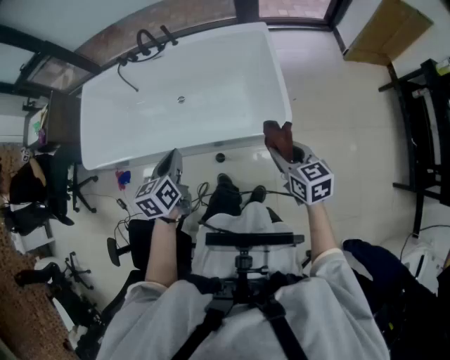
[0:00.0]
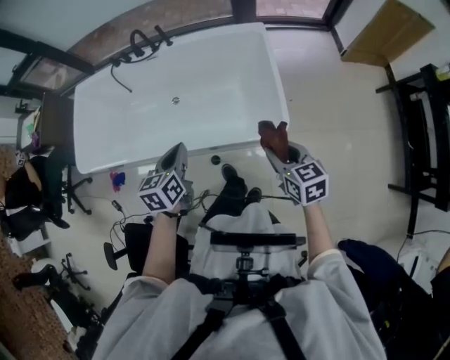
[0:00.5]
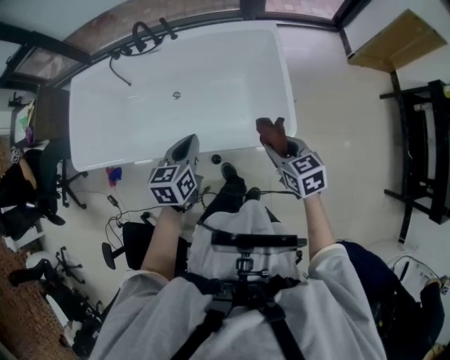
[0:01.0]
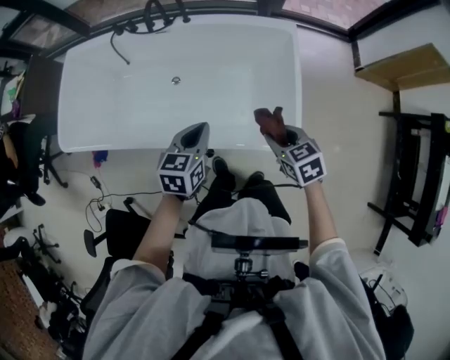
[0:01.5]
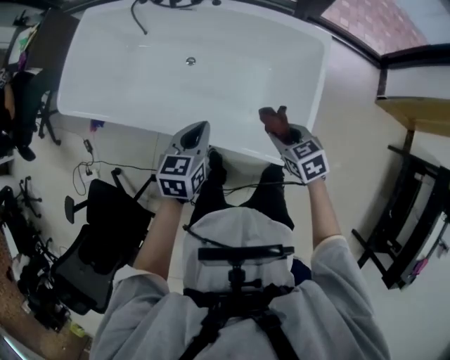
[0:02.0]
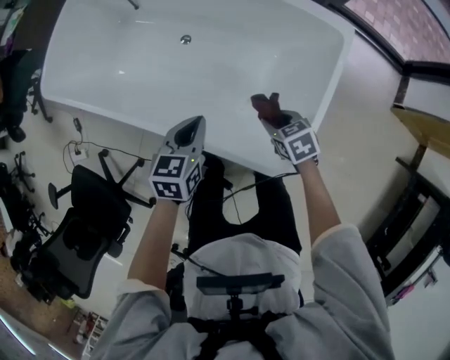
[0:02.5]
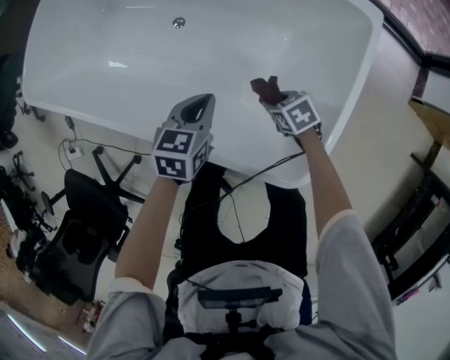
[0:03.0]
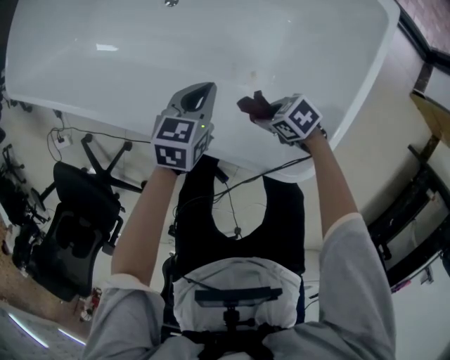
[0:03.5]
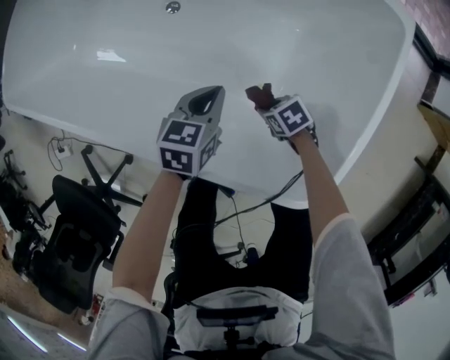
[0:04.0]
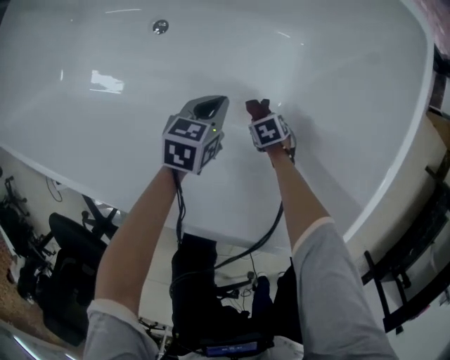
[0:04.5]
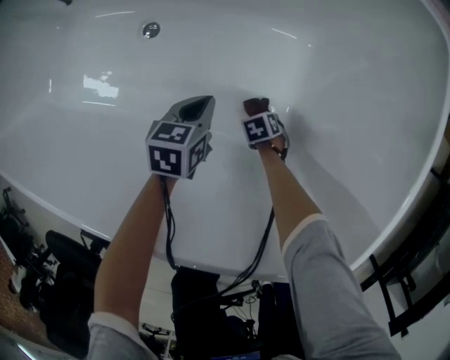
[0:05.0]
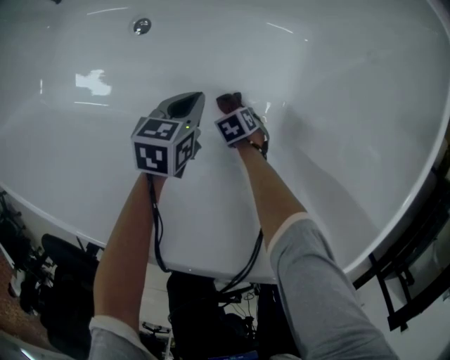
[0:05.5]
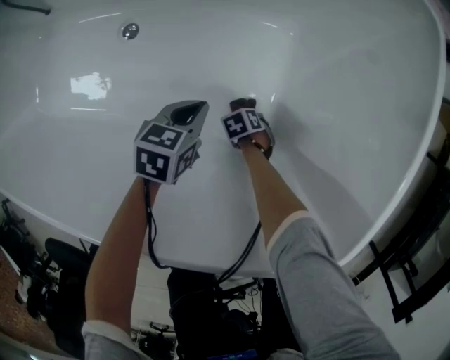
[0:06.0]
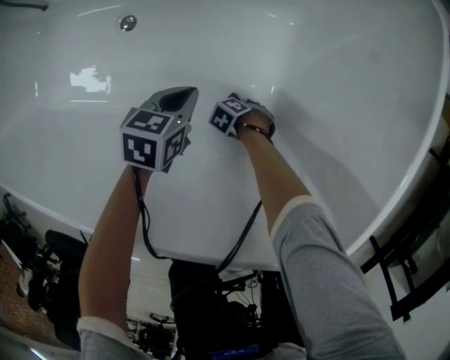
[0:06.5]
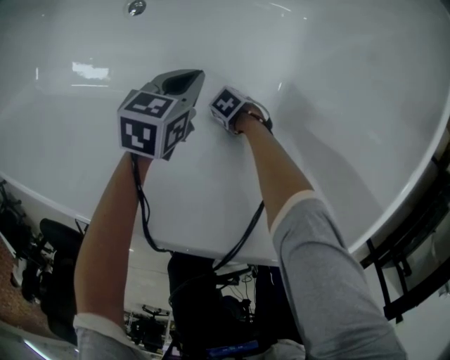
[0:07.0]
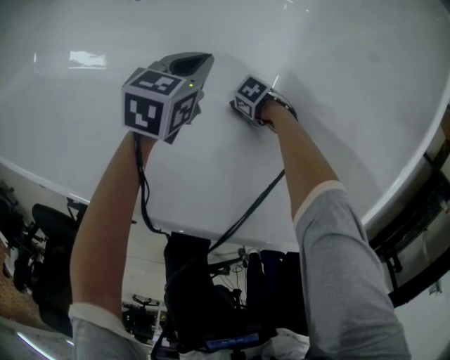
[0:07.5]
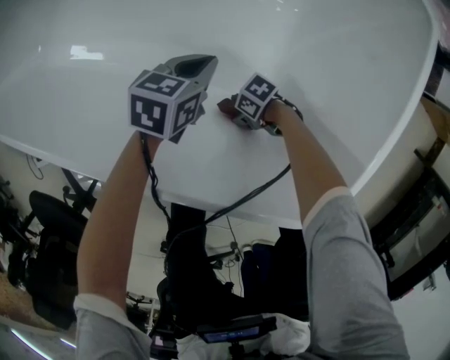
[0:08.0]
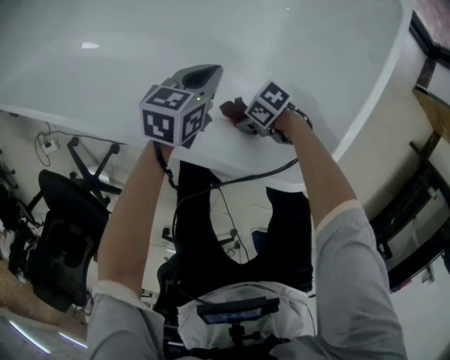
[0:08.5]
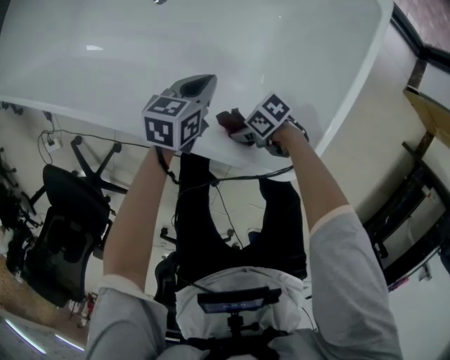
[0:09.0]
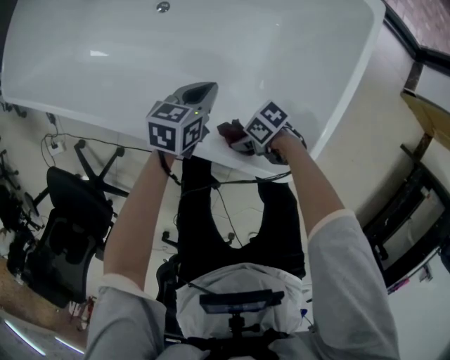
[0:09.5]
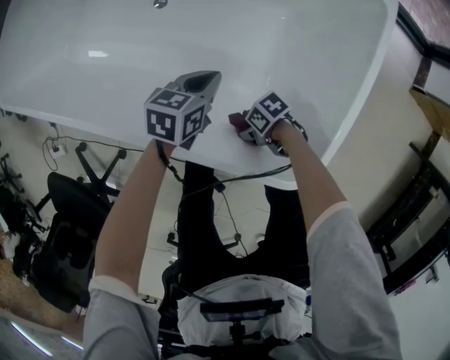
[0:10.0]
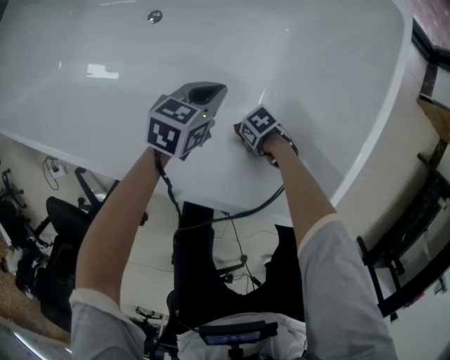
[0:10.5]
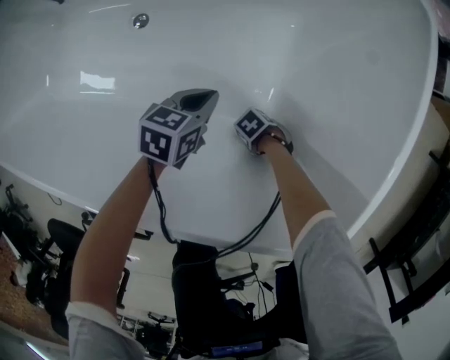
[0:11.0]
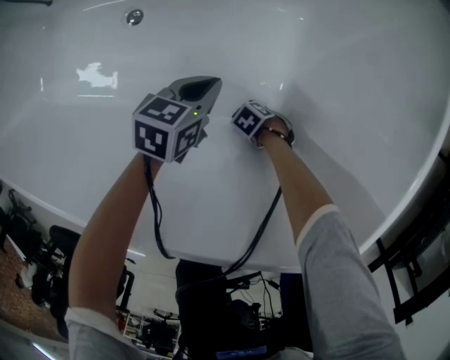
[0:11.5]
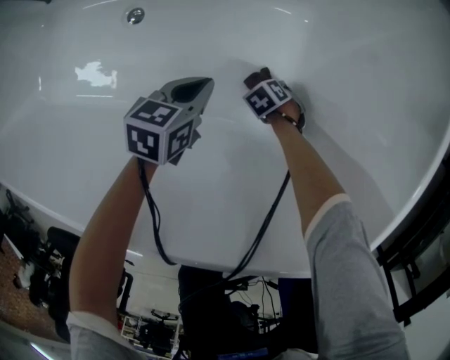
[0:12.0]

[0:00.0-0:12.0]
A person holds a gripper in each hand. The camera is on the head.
0:00.0 to 0:02.0: The left gripper shifts by roughly 20 cm.
0:02.0 to 0:04.0: The left gripper moves downward, roughly 35 cm.
0:04.0 to 0:06.0: The left gripper is displaced downward by roughly 20 cm.
0:06.0 to 0:08.0: The left gripper shifts about 5 cm upward.
0:08.0 to 0:10.0: The left gripper moves upward, about 10 cm.
0:10.0 to 0:12.0: The left gripper heads downward, covering roughly 20 cm.

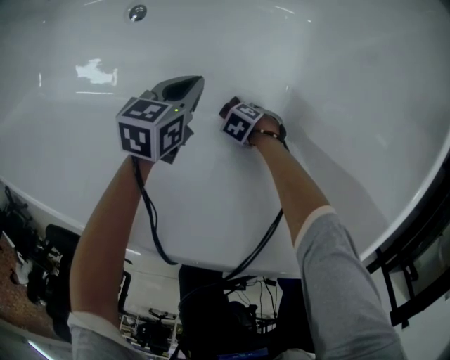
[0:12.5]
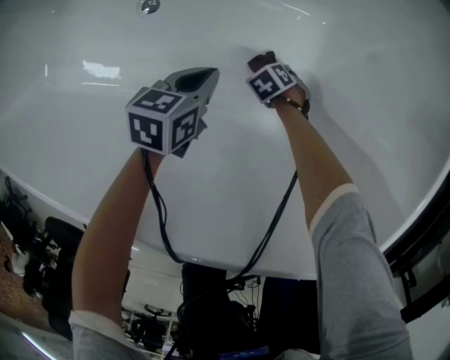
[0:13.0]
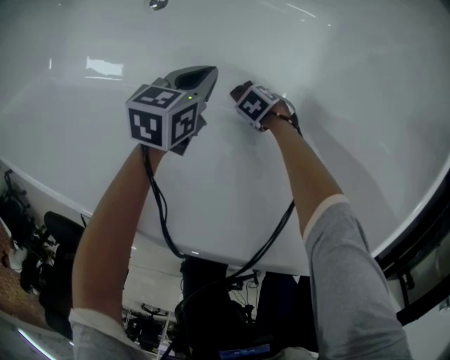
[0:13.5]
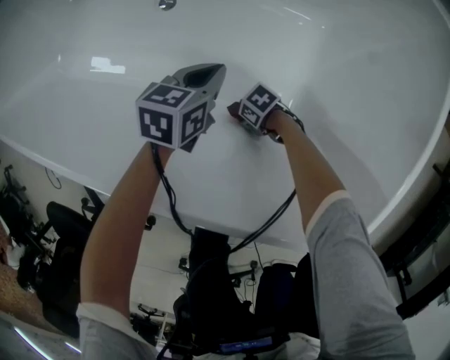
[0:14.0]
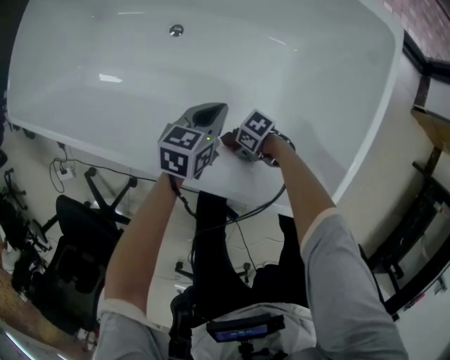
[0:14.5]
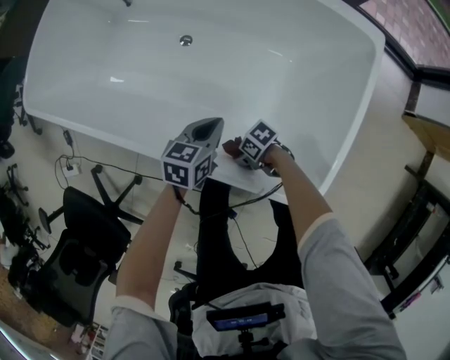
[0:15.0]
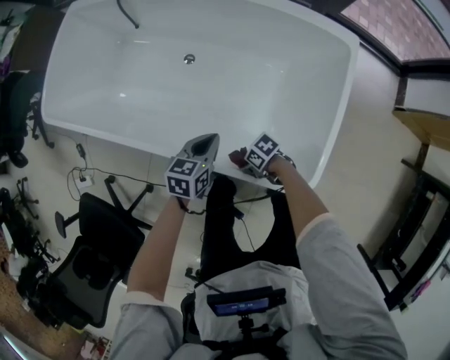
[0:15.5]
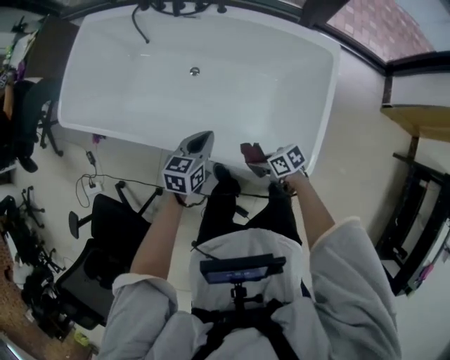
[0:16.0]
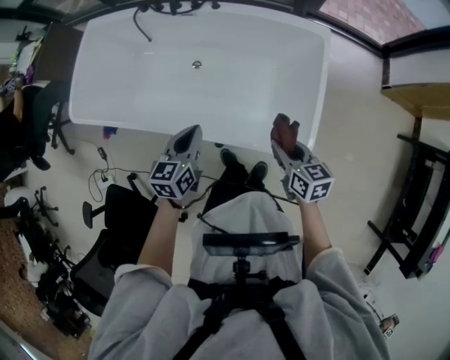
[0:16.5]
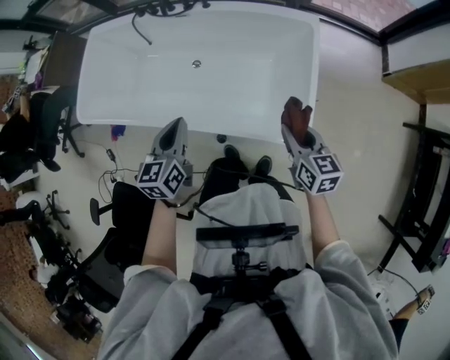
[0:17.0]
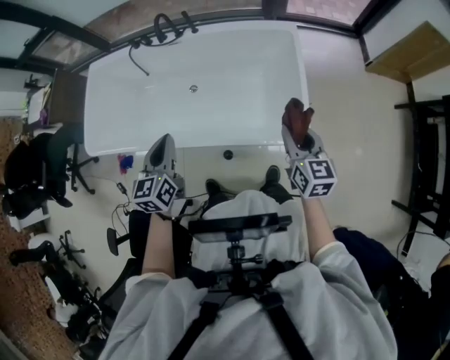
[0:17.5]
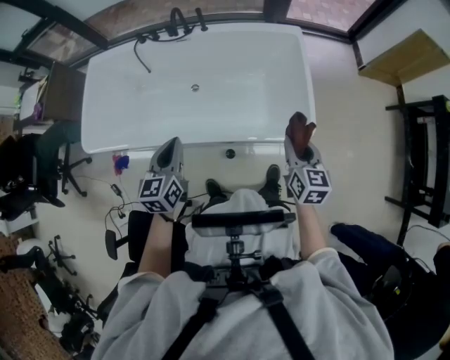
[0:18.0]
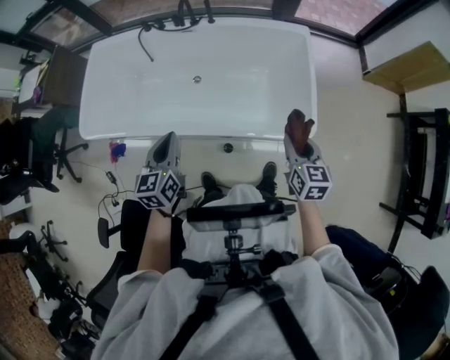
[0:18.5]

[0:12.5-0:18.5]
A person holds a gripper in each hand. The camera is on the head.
0:12.5 to 0:14.5: The left gripper heads upward, covering some 20 cm.
0:14.5 to 0:16.5: The left gripper shifts about 35 cm upward.
0:16.5 to 0:18.5: The left gripper ends up about 20 cm from where it was.

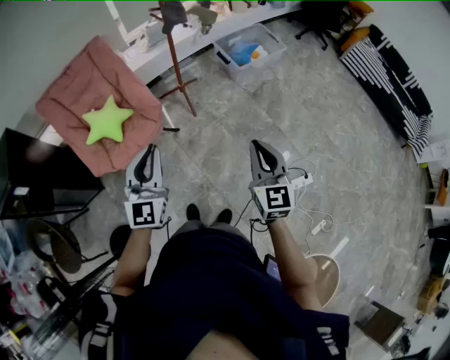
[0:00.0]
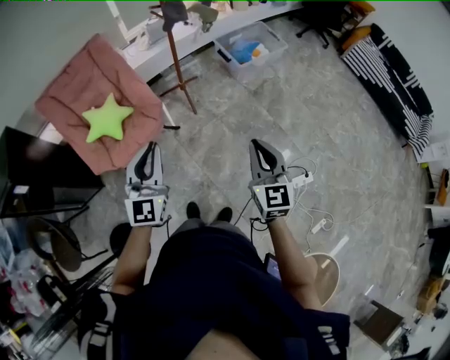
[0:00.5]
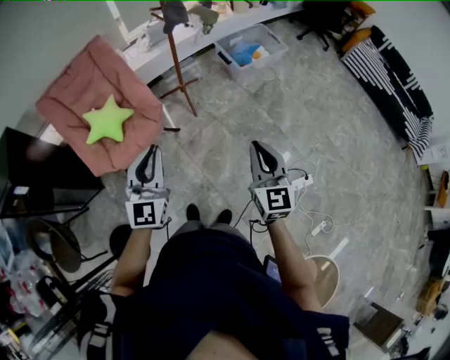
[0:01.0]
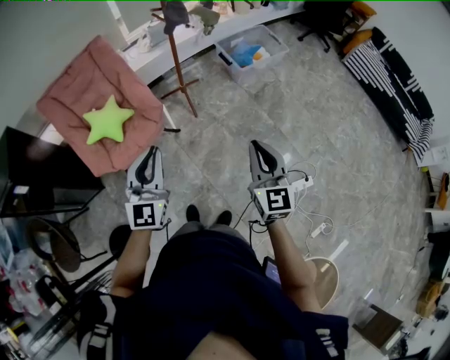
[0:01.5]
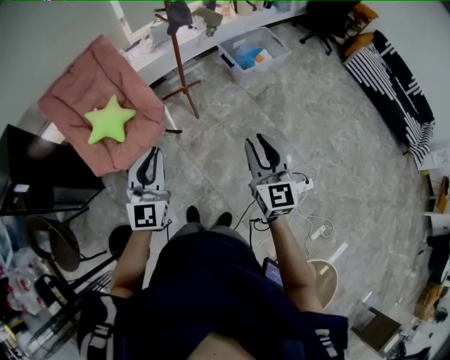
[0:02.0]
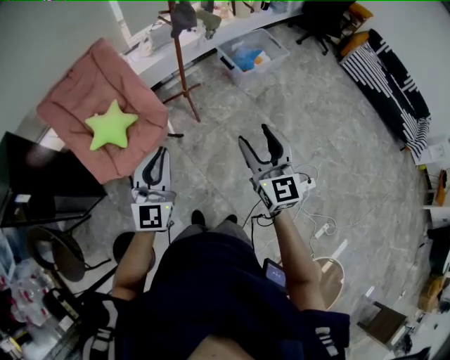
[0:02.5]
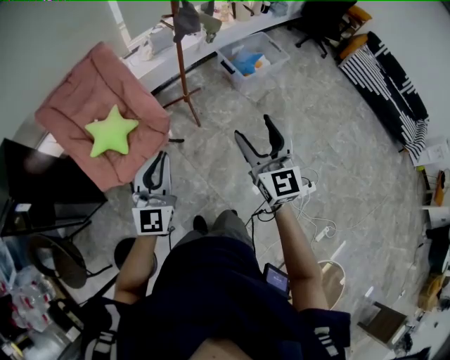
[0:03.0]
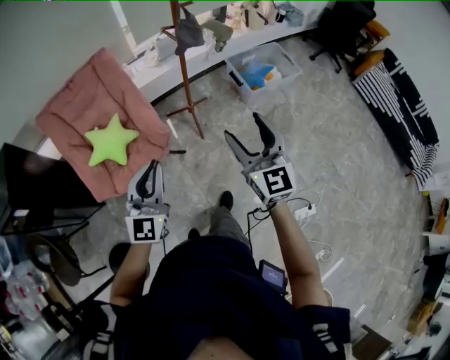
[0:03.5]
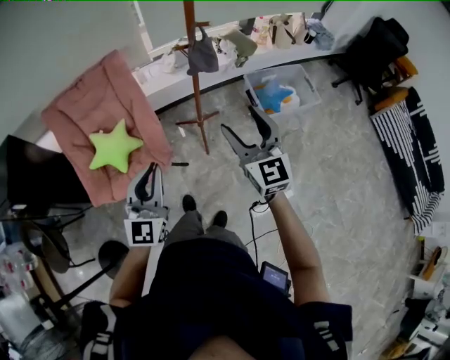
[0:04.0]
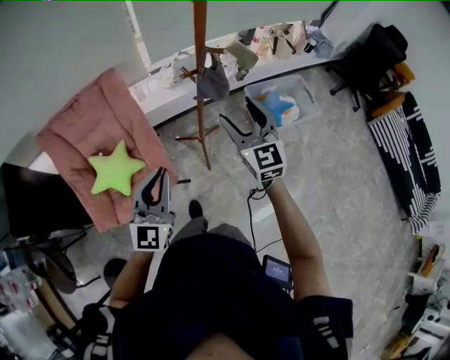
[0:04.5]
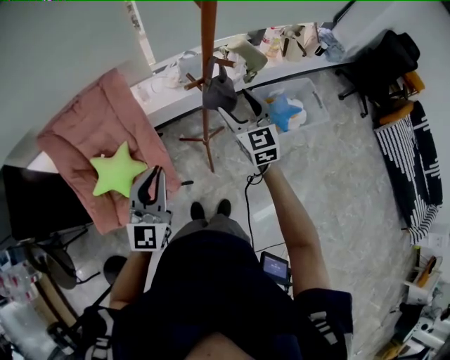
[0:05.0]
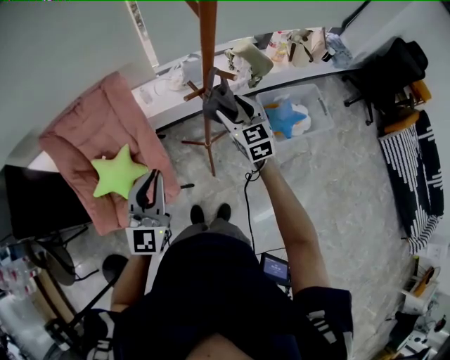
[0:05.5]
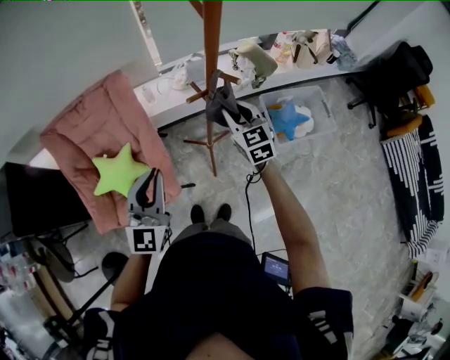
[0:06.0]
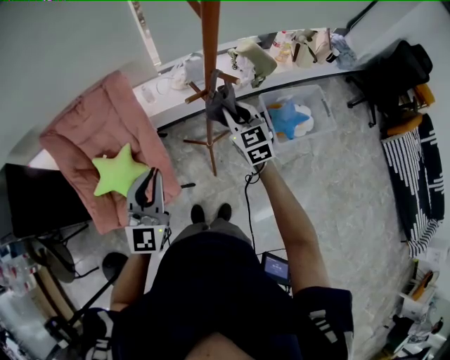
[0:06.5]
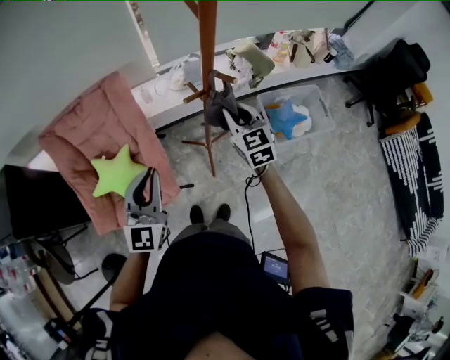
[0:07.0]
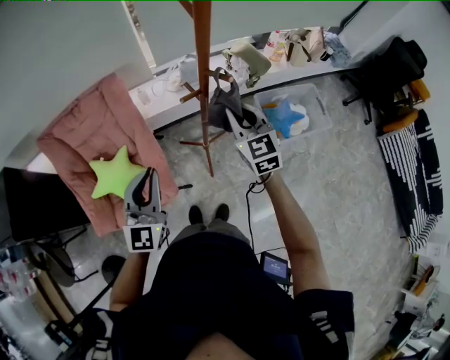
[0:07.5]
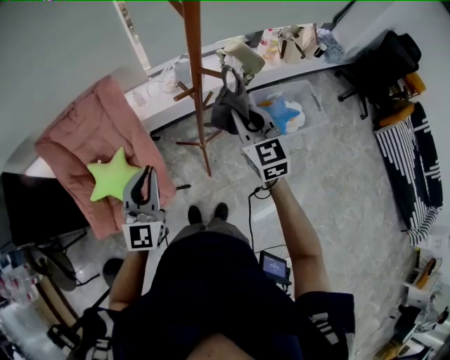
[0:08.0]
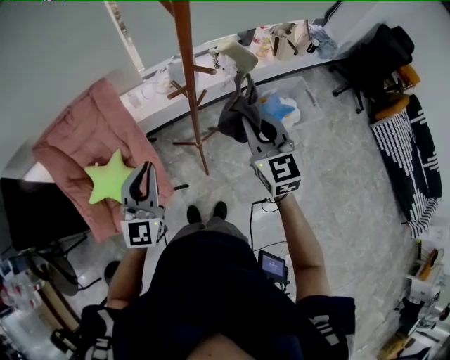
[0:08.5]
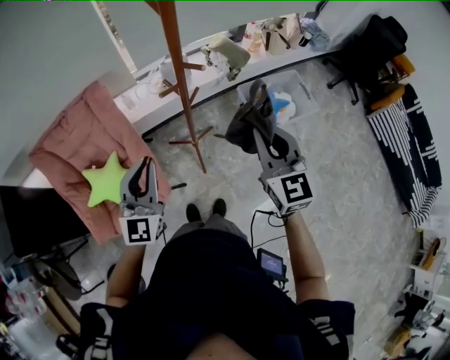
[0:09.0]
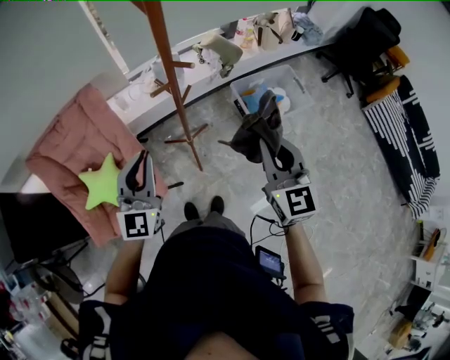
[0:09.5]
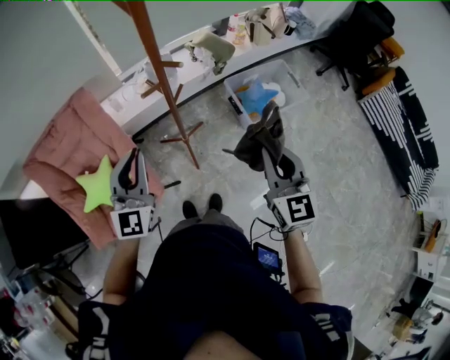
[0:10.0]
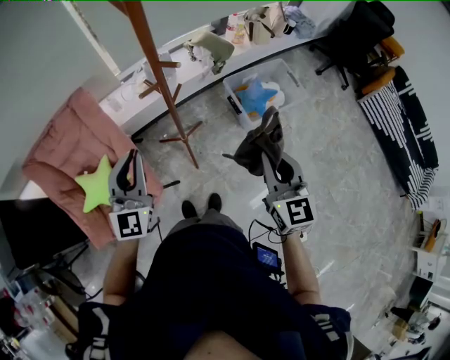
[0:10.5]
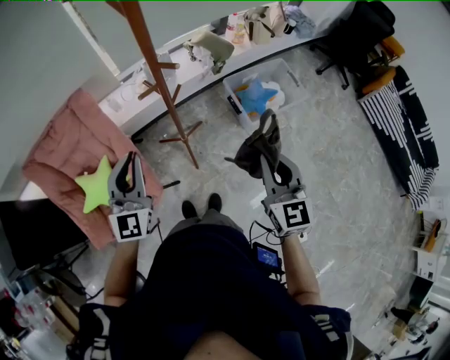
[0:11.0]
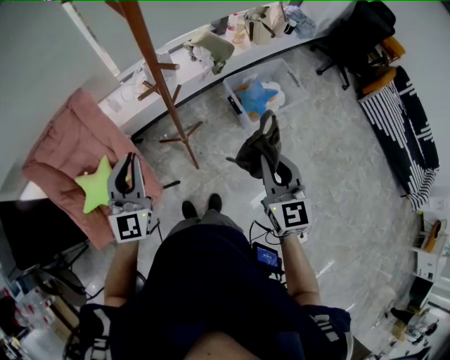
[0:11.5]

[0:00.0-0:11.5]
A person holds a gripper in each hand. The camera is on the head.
0:00.0 to 0:02.0: The grippers move only a little.
0:02.0 to 0:04.0: Both grippers travel together forward, roughly 35 cm. The right gripper rotates approximately 20 degrees, and opens up.
0:04.0 to 0:06.0: Both grippers travel together forward, approximately 30 cm. The right gripper closes its fingers.
0:06.0 to 0:07.5: The right gripper heads upward, covering about 5 cm.
0:07.5 to 0:09.5: The right gripper heads backward, to the right and upward, covering approximately 20 cm; the left gripper travels to the right by about 5 cm.
0:09.5 to 0:11.5: The right gripper ends up about 5 cm from where it was.
